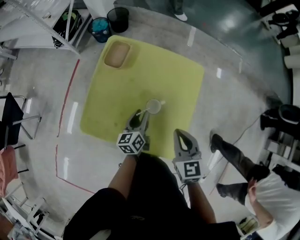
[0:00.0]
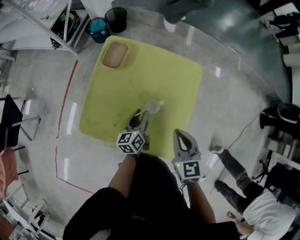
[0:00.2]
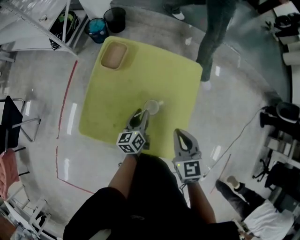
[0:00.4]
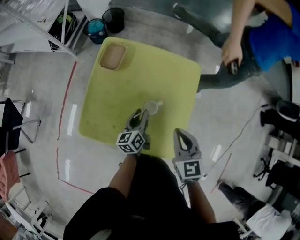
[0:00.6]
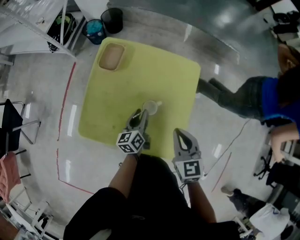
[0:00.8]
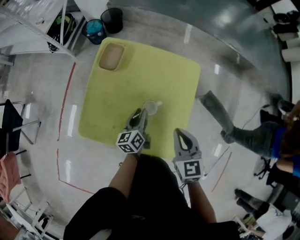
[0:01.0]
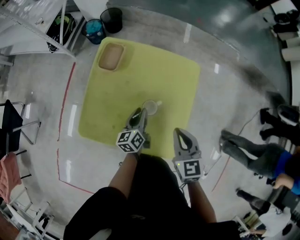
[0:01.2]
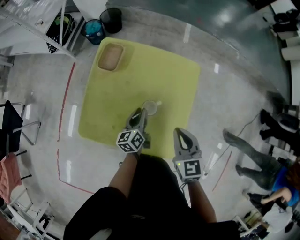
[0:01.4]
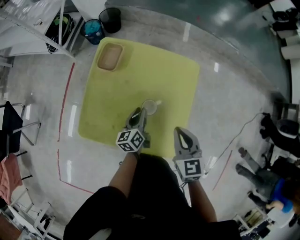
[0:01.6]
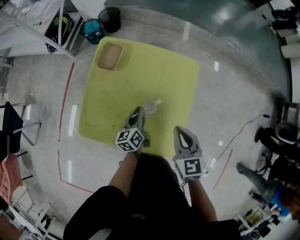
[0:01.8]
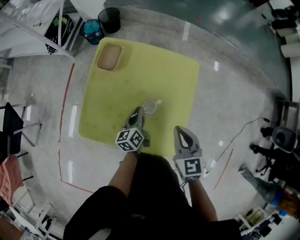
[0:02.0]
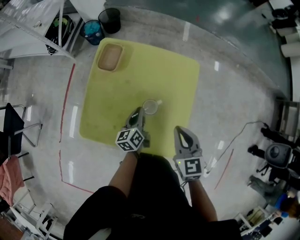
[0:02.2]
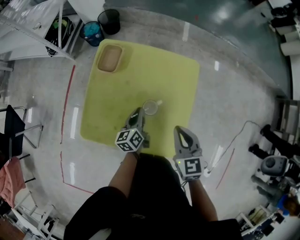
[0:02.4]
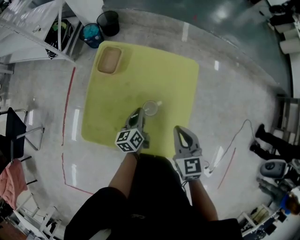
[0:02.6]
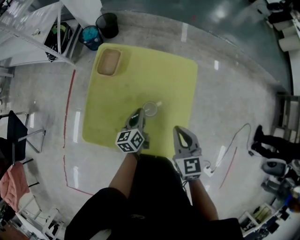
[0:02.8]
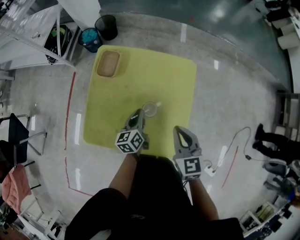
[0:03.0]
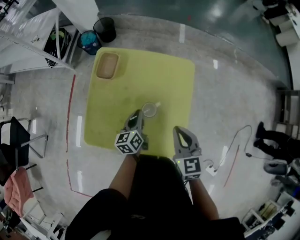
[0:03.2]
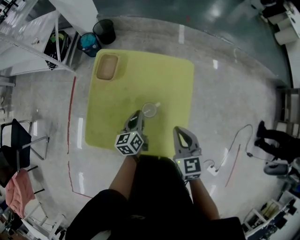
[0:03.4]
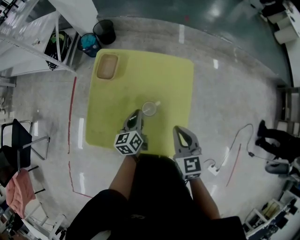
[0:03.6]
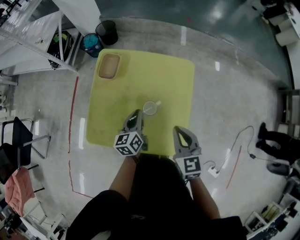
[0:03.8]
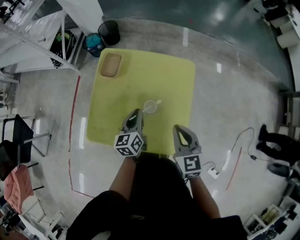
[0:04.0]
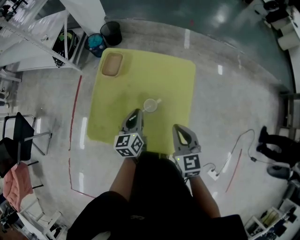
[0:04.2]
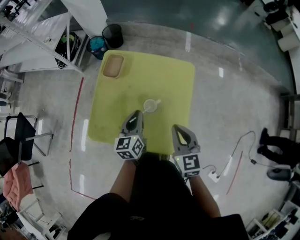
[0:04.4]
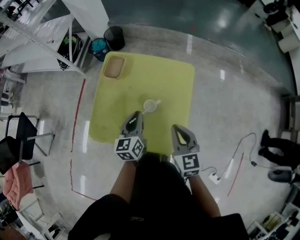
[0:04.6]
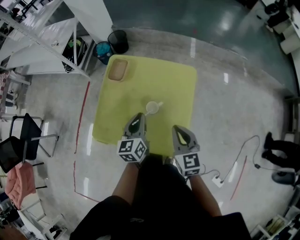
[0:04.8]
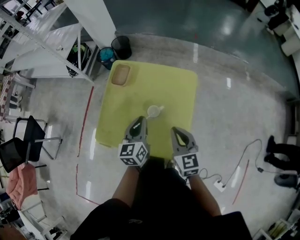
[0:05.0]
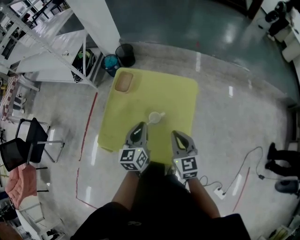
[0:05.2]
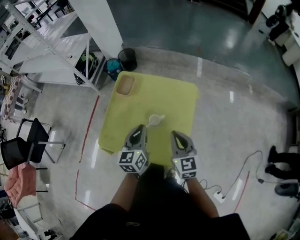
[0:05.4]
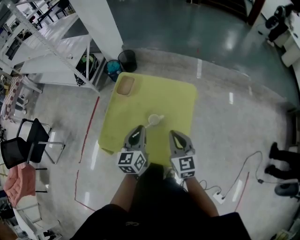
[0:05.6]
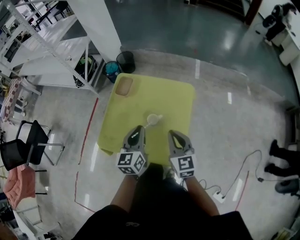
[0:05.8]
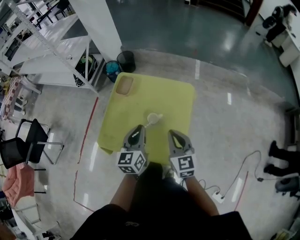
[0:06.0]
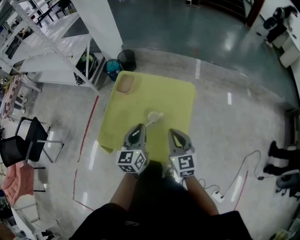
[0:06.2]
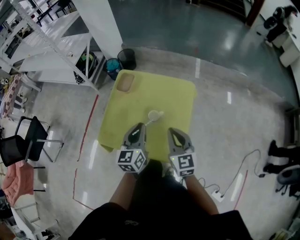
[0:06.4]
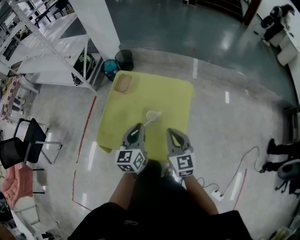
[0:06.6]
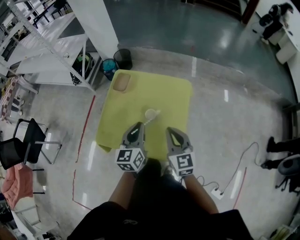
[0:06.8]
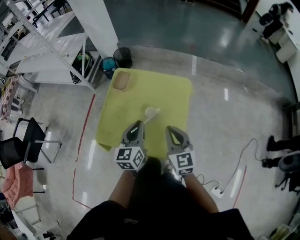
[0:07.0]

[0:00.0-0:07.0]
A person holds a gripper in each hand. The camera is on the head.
0:00.0 to 0:02.8: The grippers stay close to where they were, moving slightly.
0:02.8 to 0:04.2: The left gripper moves upward, roughly 10 cm.
0:04.2 to 0:05.6: The right gripper shifts by about 5 cm, while the left gripper travels upward and backward by roughly 15 cm.
0:05.6 to 0:07.0: The grippers move only a little.

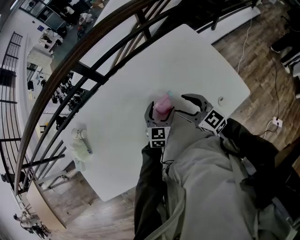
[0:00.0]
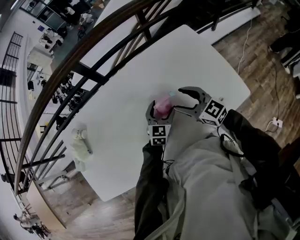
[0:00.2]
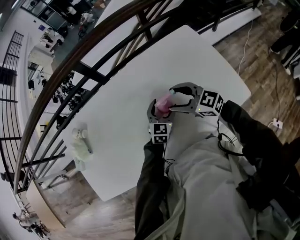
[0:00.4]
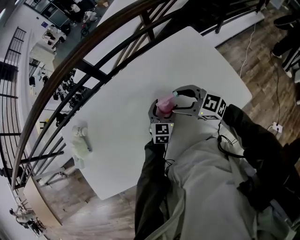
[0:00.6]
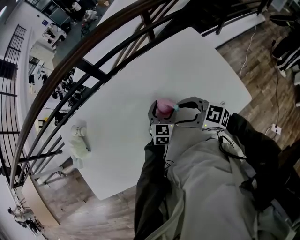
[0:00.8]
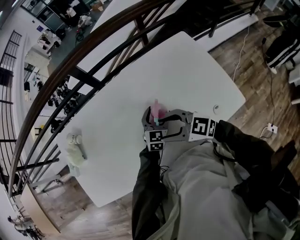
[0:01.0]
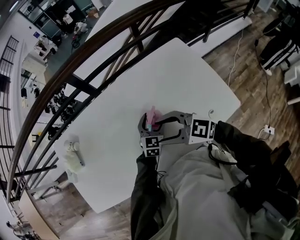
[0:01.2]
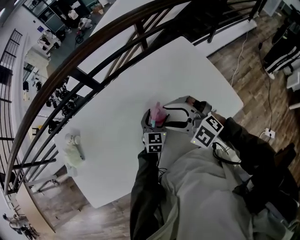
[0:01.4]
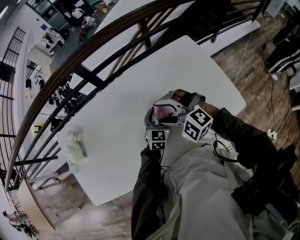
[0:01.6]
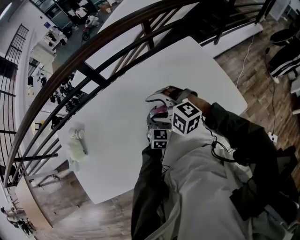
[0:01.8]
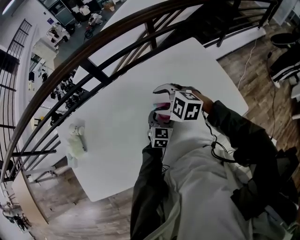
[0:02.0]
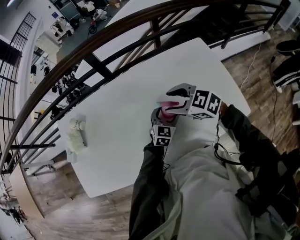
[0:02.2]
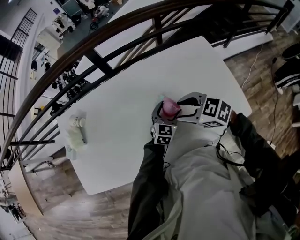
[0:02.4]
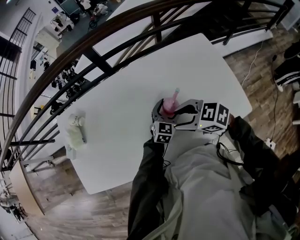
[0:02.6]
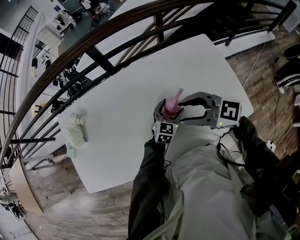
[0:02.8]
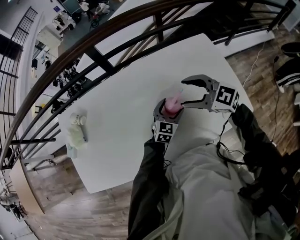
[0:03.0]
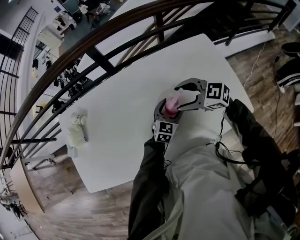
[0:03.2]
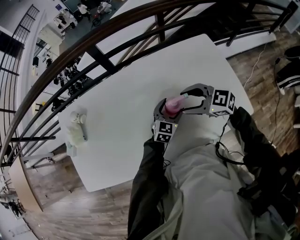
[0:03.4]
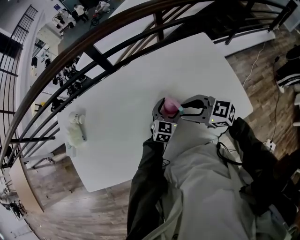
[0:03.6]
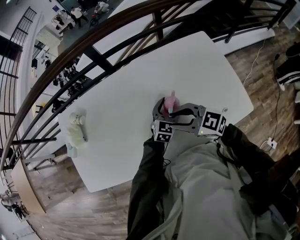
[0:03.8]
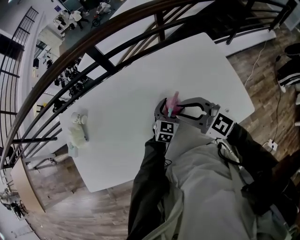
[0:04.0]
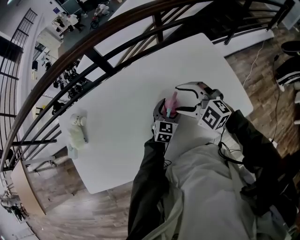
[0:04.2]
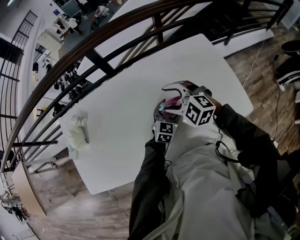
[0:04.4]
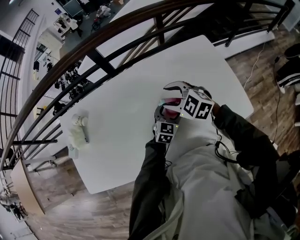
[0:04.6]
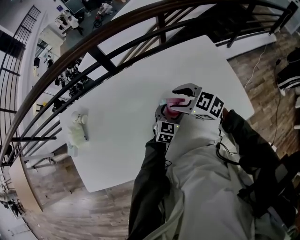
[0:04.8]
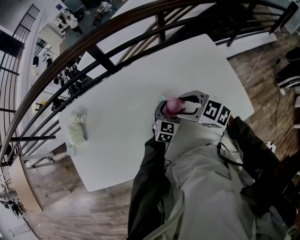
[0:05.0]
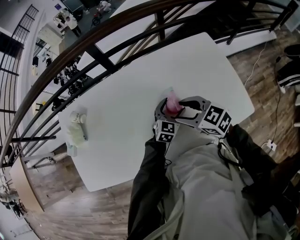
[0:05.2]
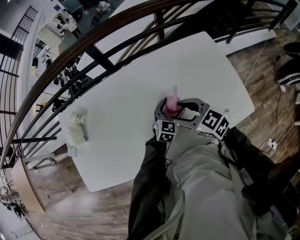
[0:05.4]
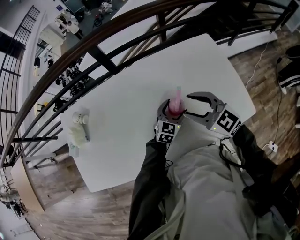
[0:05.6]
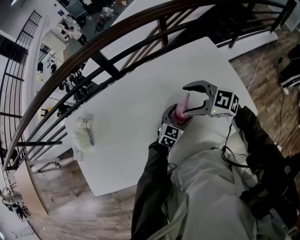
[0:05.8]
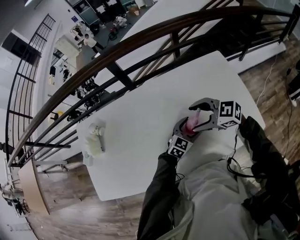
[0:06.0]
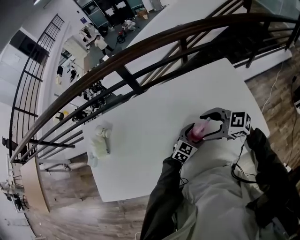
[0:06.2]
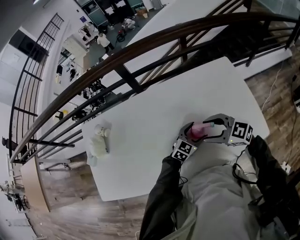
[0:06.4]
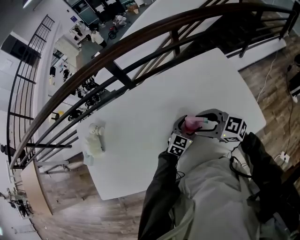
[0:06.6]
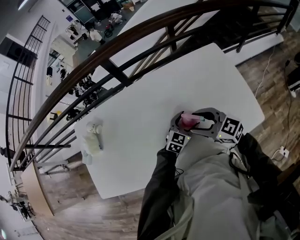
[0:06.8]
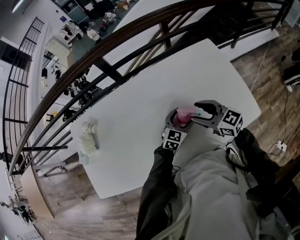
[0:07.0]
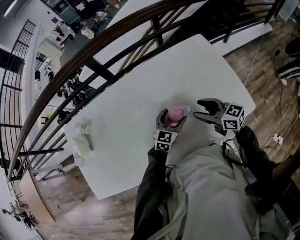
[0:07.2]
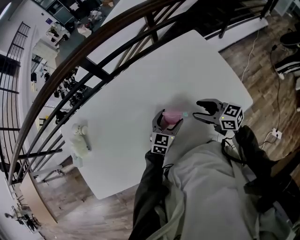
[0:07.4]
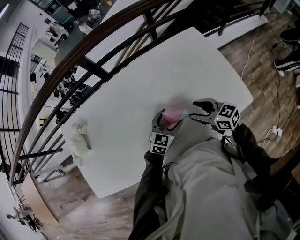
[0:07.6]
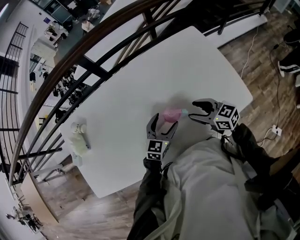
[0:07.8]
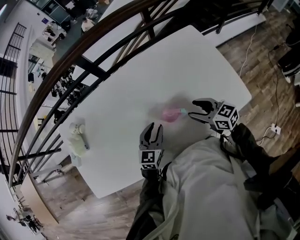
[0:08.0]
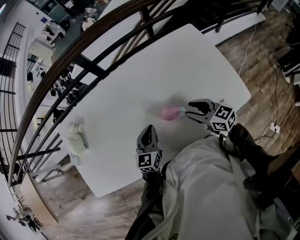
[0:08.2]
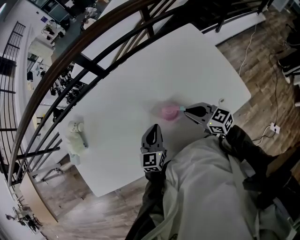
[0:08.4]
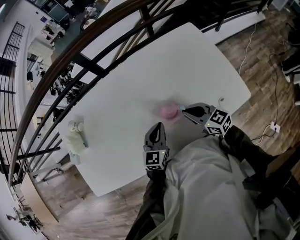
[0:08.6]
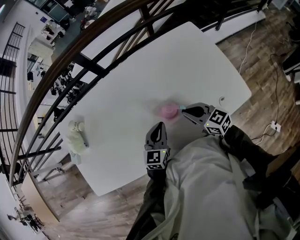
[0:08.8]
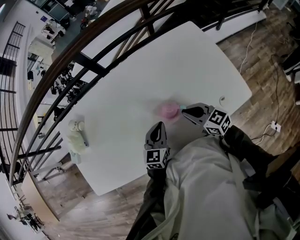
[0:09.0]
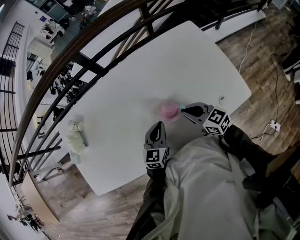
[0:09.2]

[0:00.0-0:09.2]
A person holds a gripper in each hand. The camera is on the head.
0:00.0 to 0:01.6: The right gripper travels to the left by roughly 10 cm, and rotates around the line of its fingers by about 50 degrees, counterclockwise from behind.
0:01.6 to 0:03.0: The right gripper moves forward and backward over roughly 10 cm, changing direction 2 times, and rotates approximately 40 degrees.
0:03.0 to 0:04.6: The right gripper goes approximately 10 cm to the left and downward, goes backward and returns, some 5 cm each way, changes its angle by some 20 degrees, and closes, then reopens.
0:04.6 to 0:06.2: The right gripper moves approximately 5 cm, and changes its angle by approximately 30 degrees.
0:06.2 to 0:07.6: The right gripper moves roughly 10 cm, and rotates roughly 40 degrees.
0:07.6 to 0:09.2: The right gripper closes. The left gripper travels to the left by roughly 5 cm, turns by approximately 20 degrees, and closes.

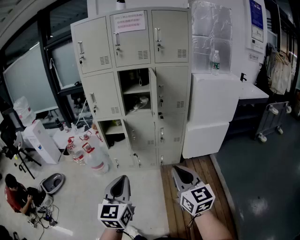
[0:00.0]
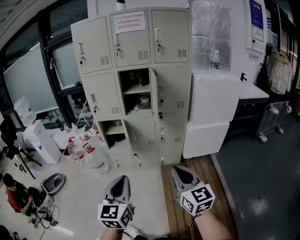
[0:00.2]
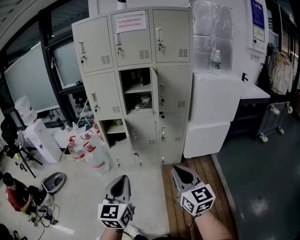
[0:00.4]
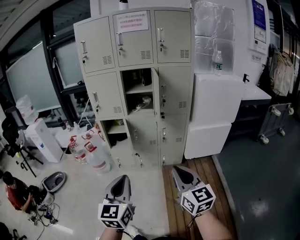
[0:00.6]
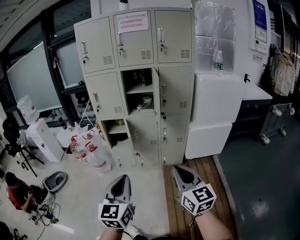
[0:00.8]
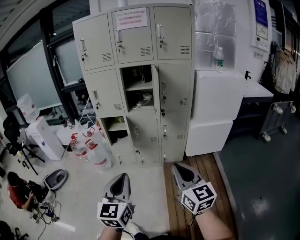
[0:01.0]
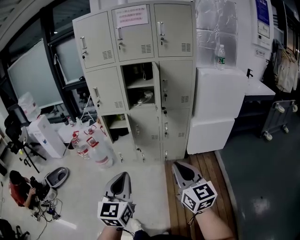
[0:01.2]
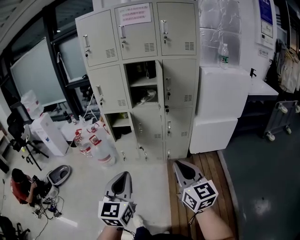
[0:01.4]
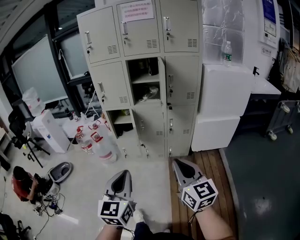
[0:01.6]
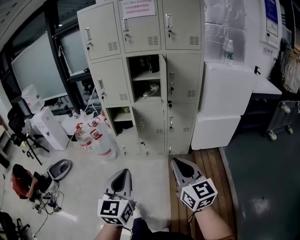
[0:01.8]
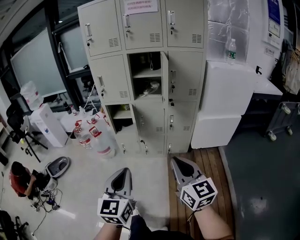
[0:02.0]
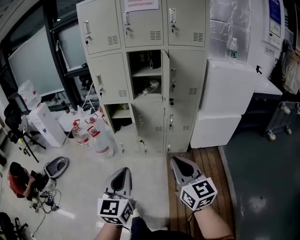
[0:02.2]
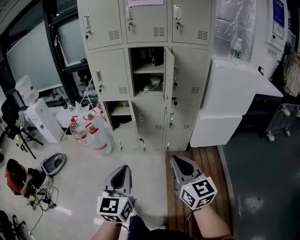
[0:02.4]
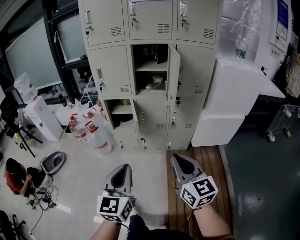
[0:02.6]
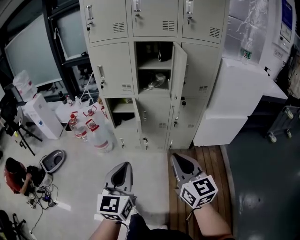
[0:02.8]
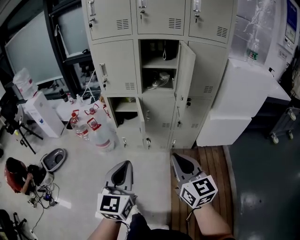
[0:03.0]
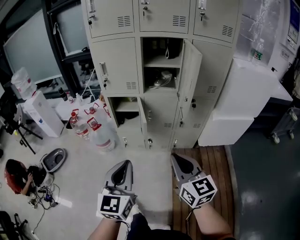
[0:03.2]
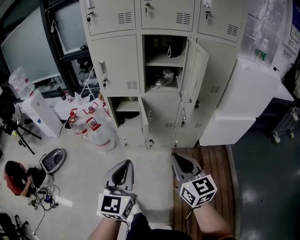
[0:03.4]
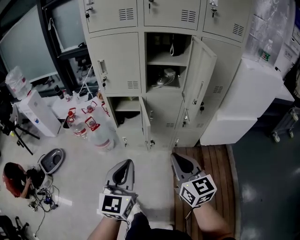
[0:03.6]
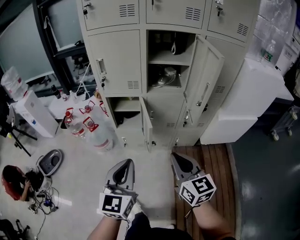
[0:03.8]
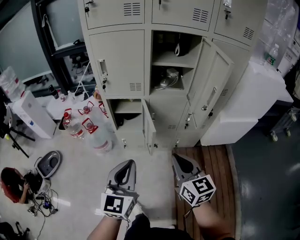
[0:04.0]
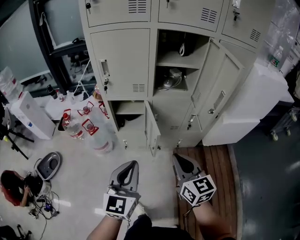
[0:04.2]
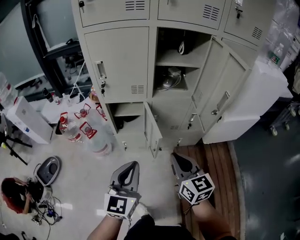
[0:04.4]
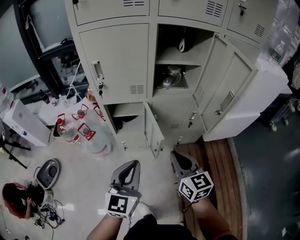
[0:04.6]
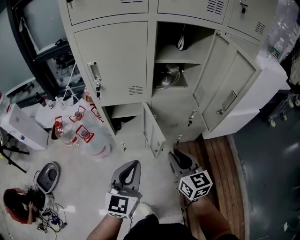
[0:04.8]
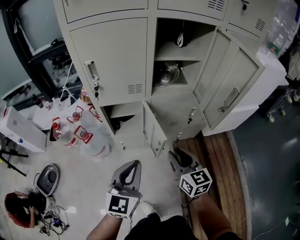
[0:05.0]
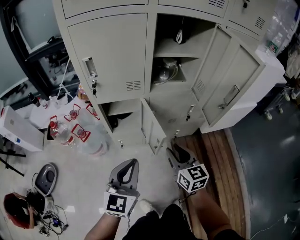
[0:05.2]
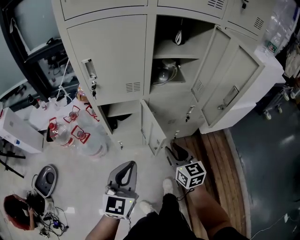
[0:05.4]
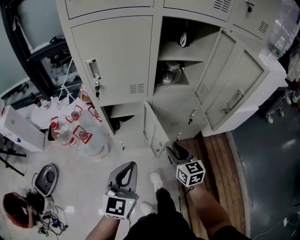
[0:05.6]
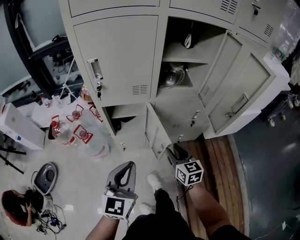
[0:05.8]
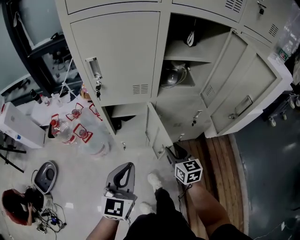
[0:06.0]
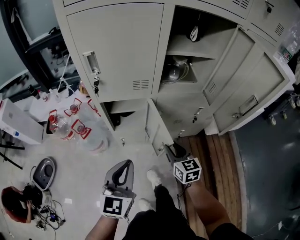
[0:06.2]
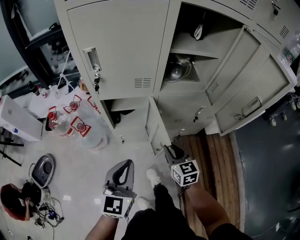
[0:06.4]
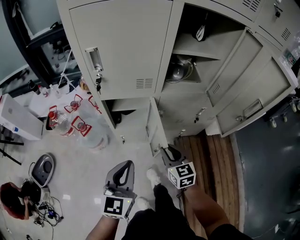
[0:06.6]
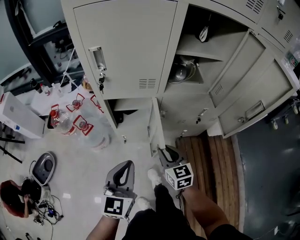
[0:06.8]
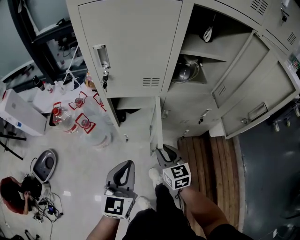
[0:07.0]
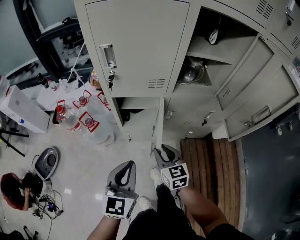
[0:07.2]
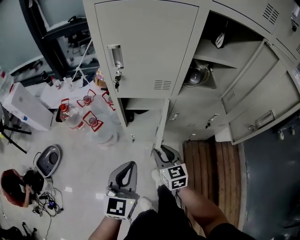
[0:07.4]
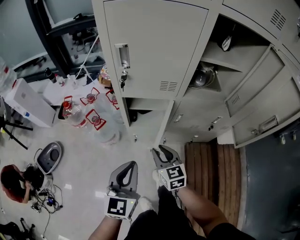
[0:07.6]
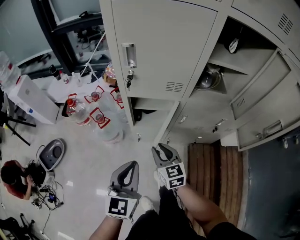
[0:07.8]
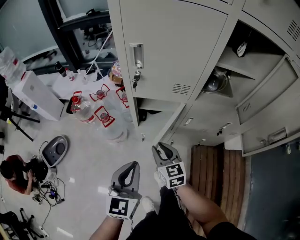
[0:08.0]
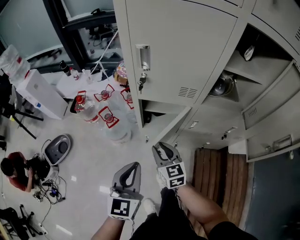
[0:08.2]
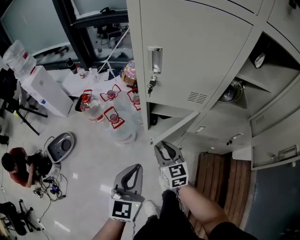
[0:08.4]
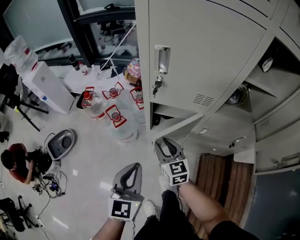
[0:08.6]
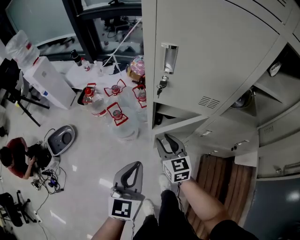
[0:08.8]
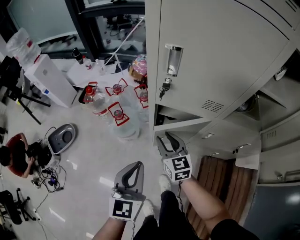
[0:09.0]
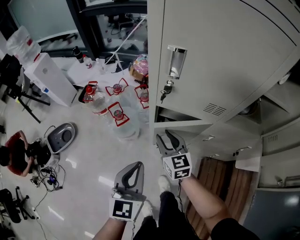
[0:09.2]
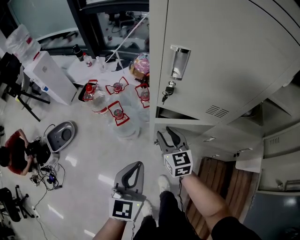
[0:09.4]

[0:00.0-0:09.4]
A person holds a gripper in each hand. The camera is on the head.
0:00.0 to 0:01.6: The grippers make only small movements.
0:01.6 to 0:03.2: Both grippers travel together forward and to the left, about 20 cm.
0:03.2 to 0:04.8: The left gripper shifts about 25 cm forward and to the left; the right gripper moves forward, to the left and downward, approximately 30 cm.
0:04.8 to 0:06.2: The left gripper is displaced to the left and downward by some 5 cm. The right gripper heads downward and forward, covering about 15 cm.
0:06.2 to 0:07.8: The right gripper heads to the left, covering some 15 cm; the left gripper heads to the left, covering roughly 5 cm.
0:07.8 to 0:09.4: The left gripper moves forward, roughly 10 cm. Meanwhile the right gripper travels forward by roughly 15 cm.
